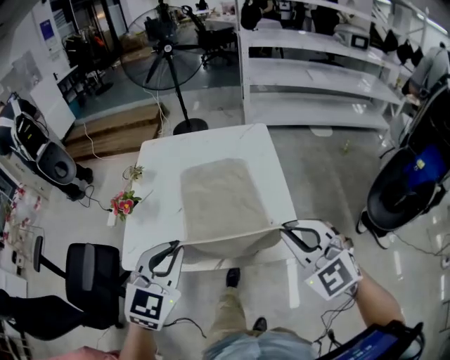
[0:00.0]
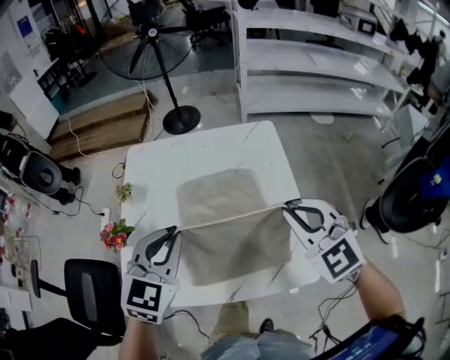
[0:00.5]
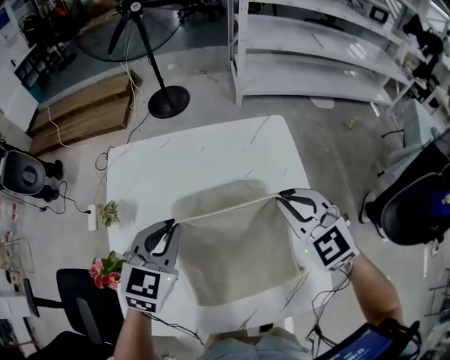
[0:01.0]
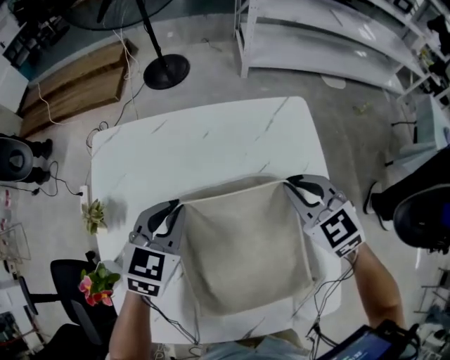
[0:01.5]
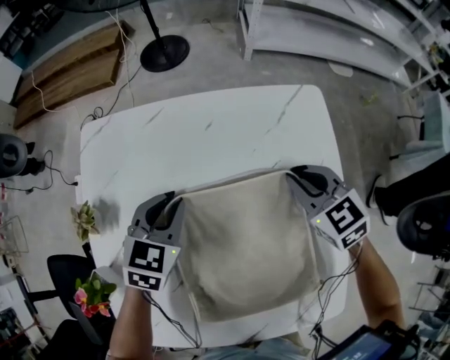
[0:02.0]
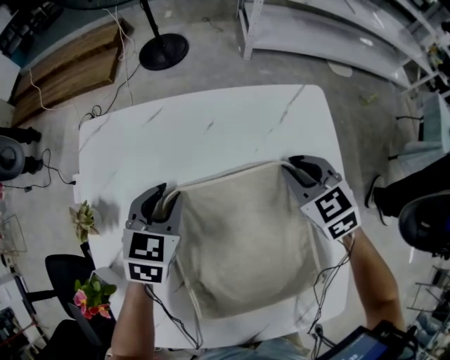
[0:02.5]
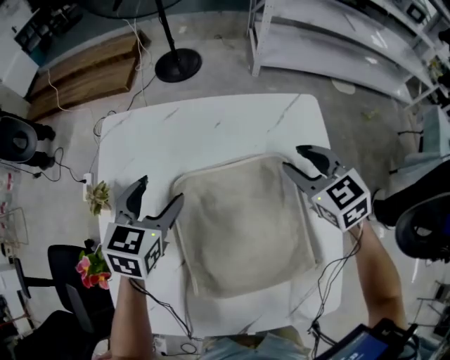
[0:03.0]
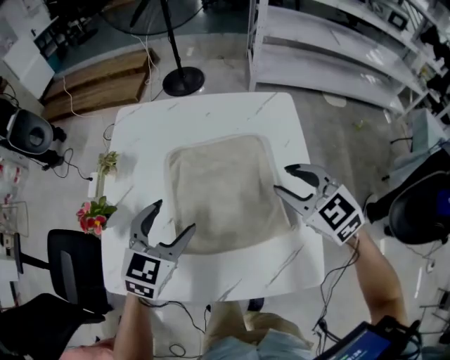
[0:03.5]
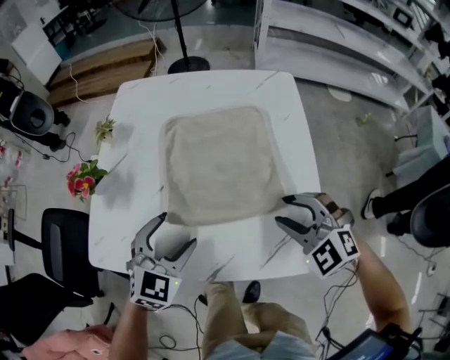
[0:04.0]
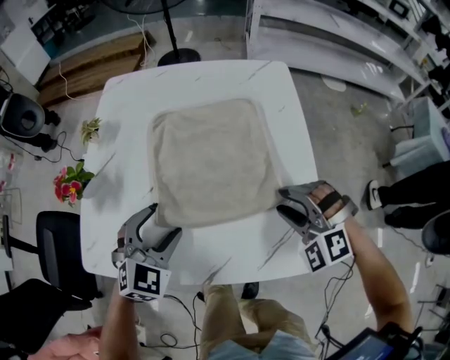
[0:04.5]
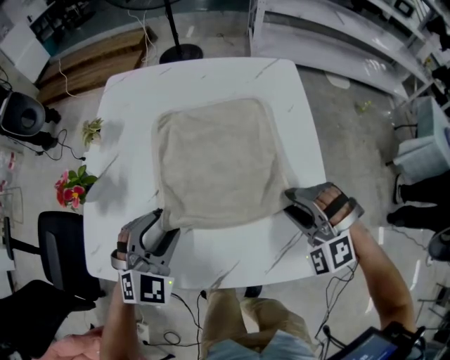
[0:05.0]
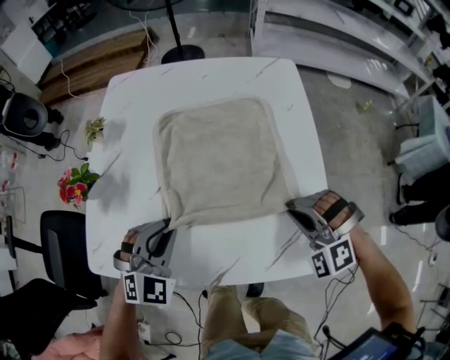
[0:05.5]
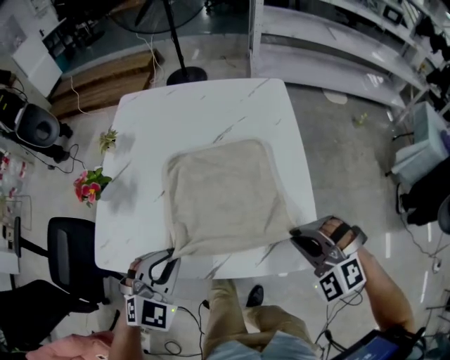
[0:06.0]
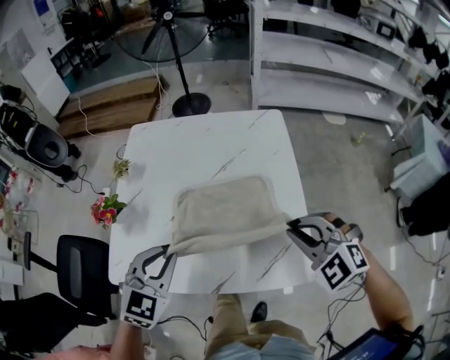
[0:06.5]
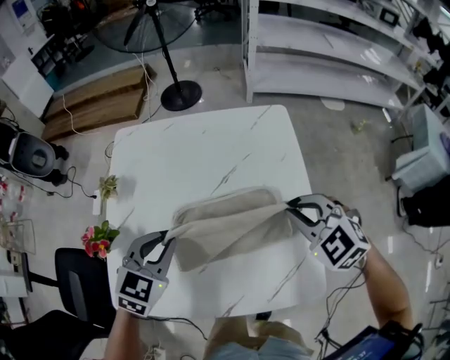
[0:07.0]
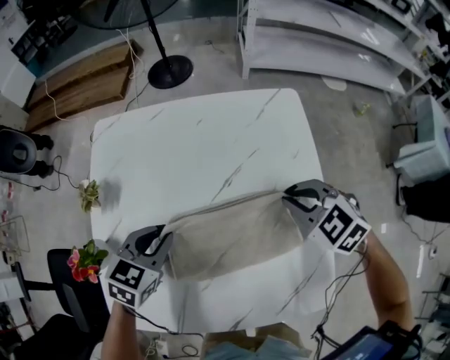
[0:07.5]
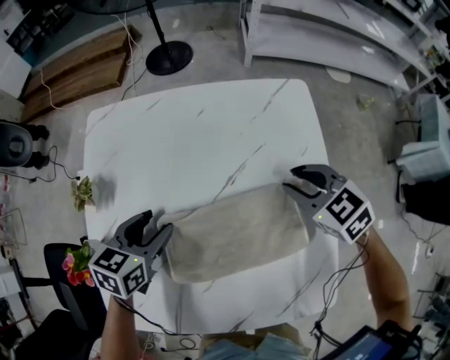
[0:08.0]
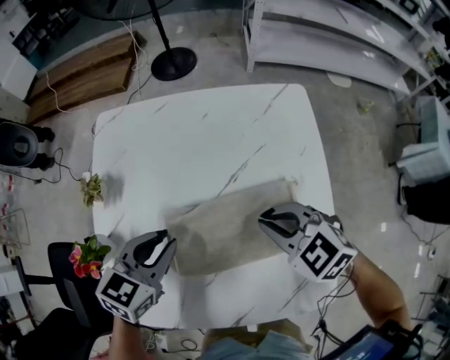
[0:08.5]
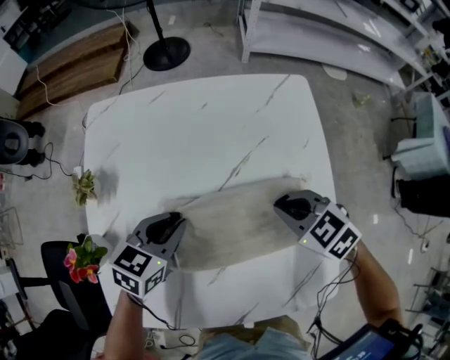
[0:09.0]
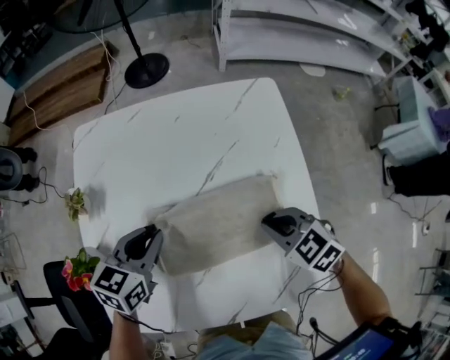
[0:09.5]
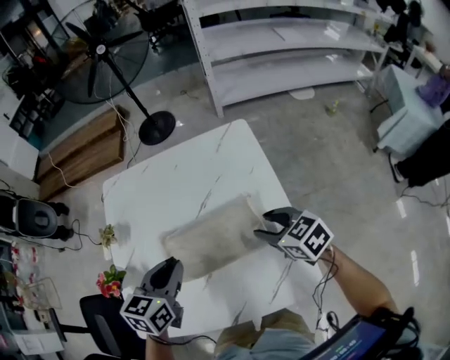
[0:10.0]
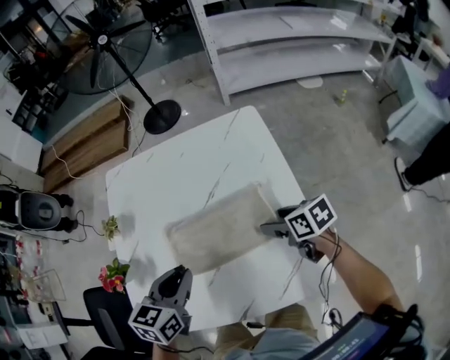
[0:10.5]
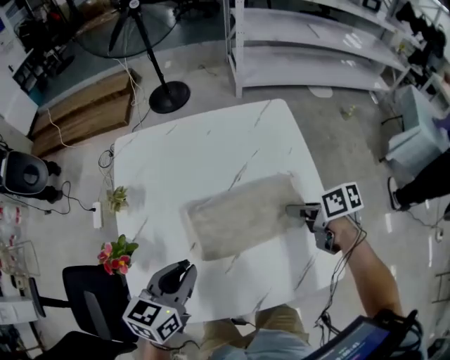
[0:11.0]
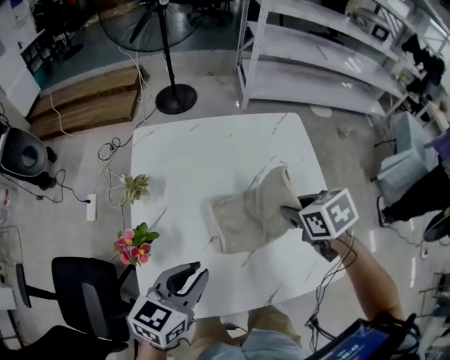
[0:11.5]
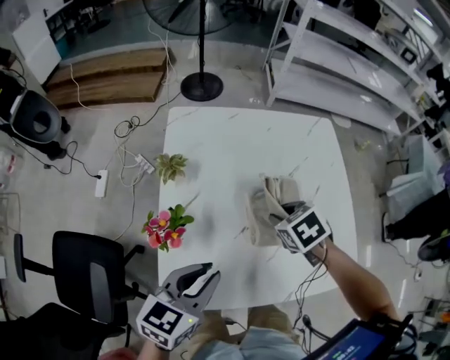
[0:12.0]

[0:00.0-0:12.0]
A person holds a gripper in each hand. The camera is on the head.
0:00.0 to 0:02.0: Both grippers are carried forward, roughly 40 cm. The two grippers go about 25 cm downward. The right gripper swivels roughly 40 degrees. Meanwhile the left gripper rotates some 20 degrees.
0:02.0 to 0:04.0: The grippers both shift backward by some 30 cm. The left gripper opens. The right gripper rotates around the line of its fingers by roughly 40 degrees, counterclockwise from behind, and opens its fingers.
0:04.0 to 0:06.0: Both grippers move backward, roughly 5 cm. The left gripper closes its fingers; the right gripper closes up.
0:06.0 to 0:08.0: The grippers both shift forward by approximately 30 cm. The right gripper rolls clockwise, seen from behind, by some 50 degrees. Meanwhile the left gripper rolls counterclockwise, seen from behind, by approximately 50 degrees, and opens its fingers.
0:08.0 to 0:10.0: The right gripper shifts roughly 15 cm backward, and changes its angle by roughly 20 degrees. The left gripper goes up and down, approximately 15 cm each way, reversing 2 times, and closes up.
0:10.0 to 0:12.0: The left gripper goes approximately 20 cm to the left and backward; the right gripper heads to the left, covering roughly 20 cm, changes its angle by some 30 degrees, and opens, then closes once more.

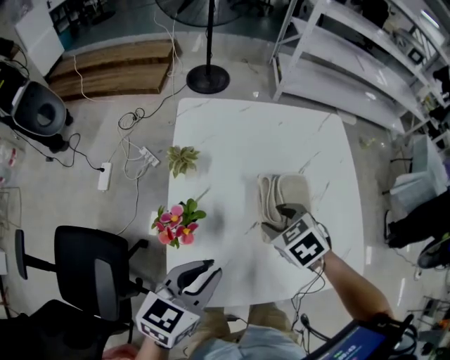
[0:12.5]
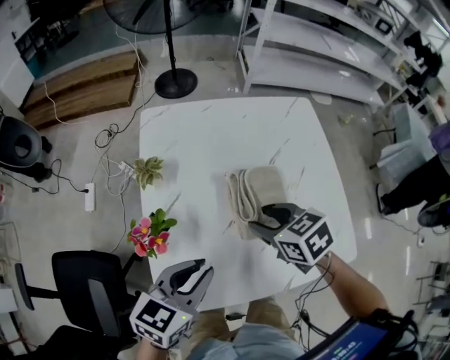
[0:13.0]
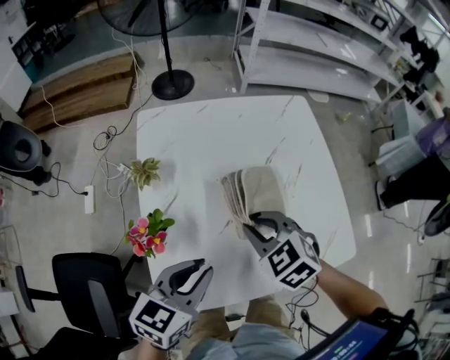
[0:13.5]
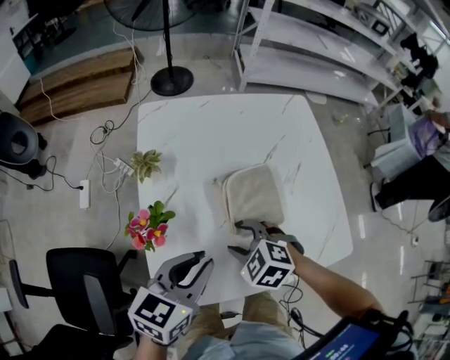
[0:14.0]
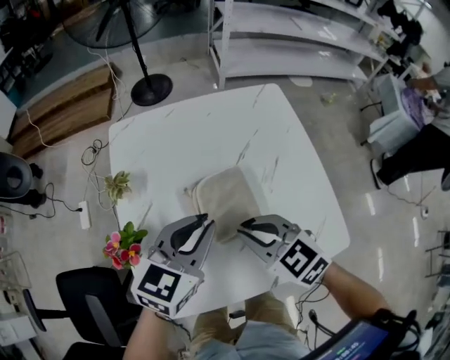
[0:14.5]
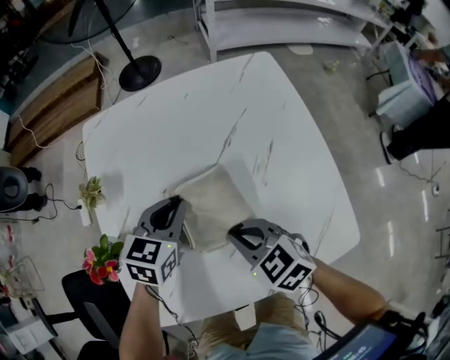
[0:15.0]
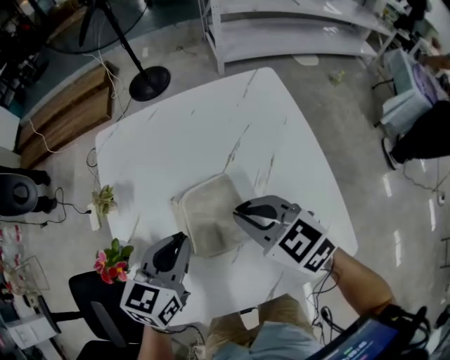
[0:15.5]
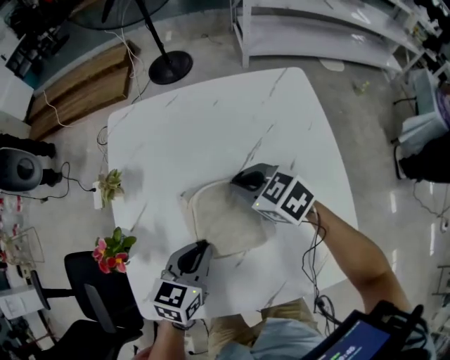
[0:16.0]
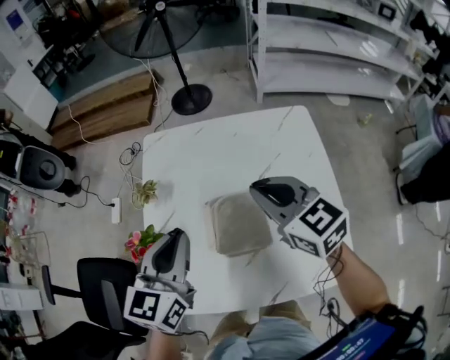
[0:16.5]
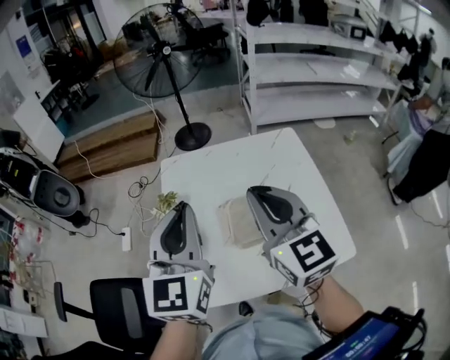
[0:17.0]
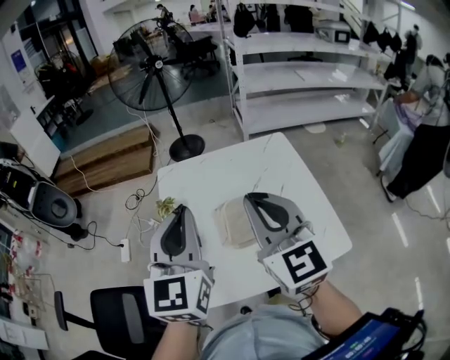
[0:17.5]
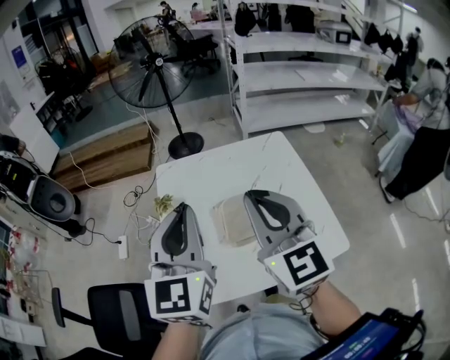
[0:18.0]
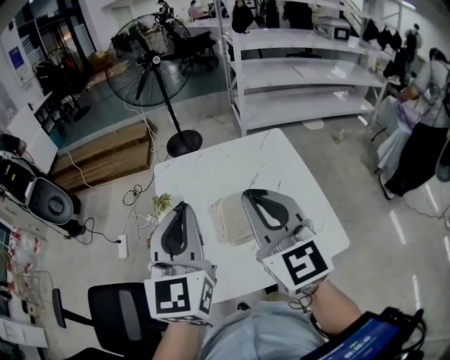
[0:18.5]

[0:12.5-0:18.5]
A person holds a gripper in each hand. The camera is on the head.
0:12.5 to 0:14.5: The right gripper goes up and down, about 10 cm each way, reversing 2 times, rotates roughly 30 degrees, and closes, while the left gripper shifts some 15 cm to the right and forward.
0:14.5 to 0:16.5: The right gripper swings up and down, roughly 20 cm each way, with 3 reversals; the left gripper swings up and down, some 20 cm each way, with 3 reversals, and turns by about 30 degrees.
0:16.5 to 0:18.5: Both grippers travel together upward and backward, roughly 20 cm. The left gripper turns by approximately 20 degrees, while the right gripper turns by roughly 40 degrees.

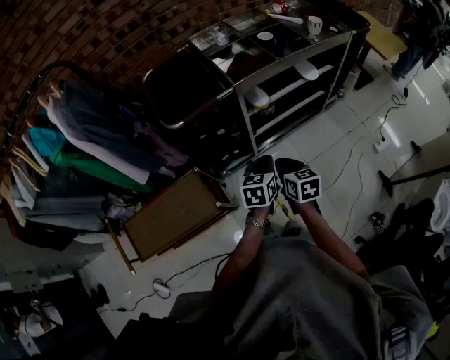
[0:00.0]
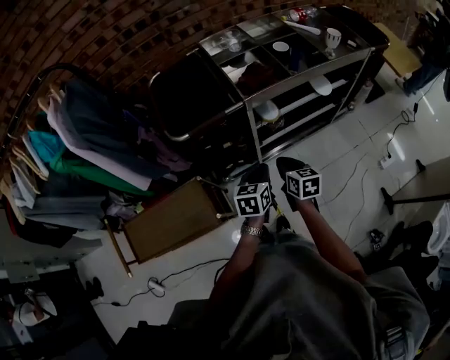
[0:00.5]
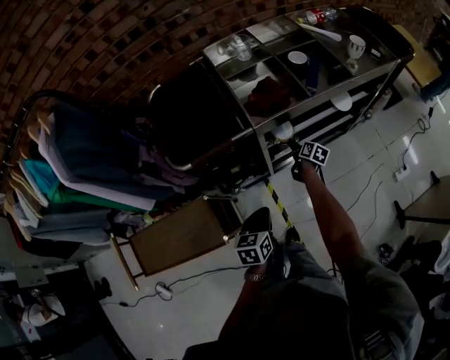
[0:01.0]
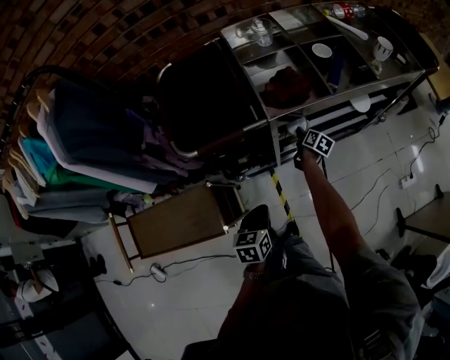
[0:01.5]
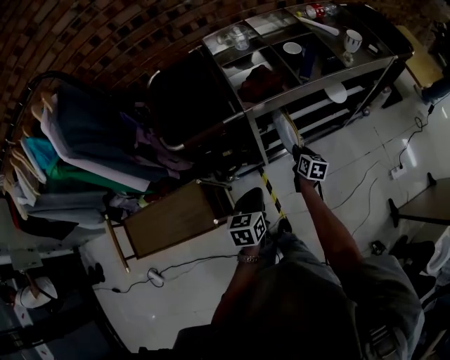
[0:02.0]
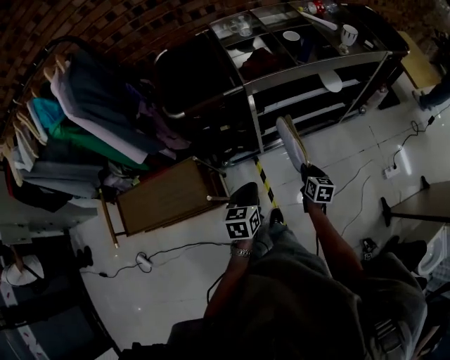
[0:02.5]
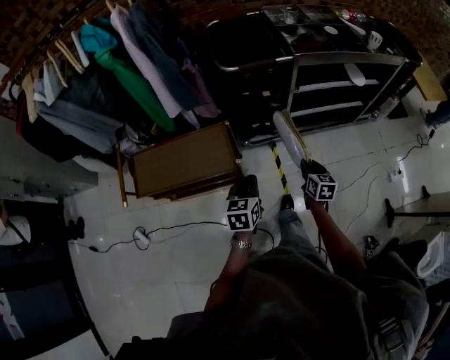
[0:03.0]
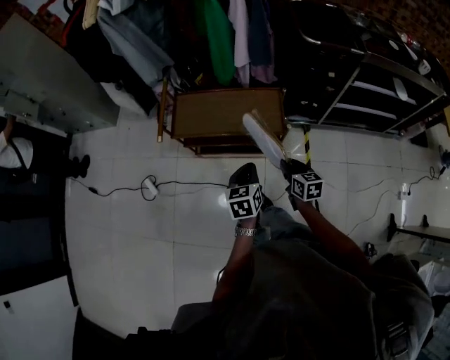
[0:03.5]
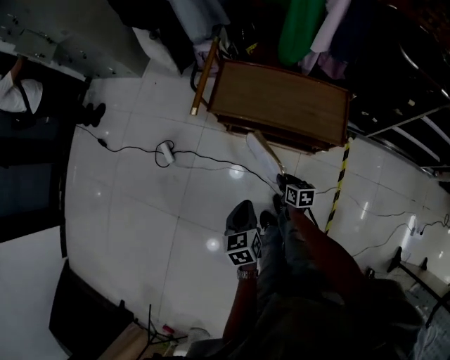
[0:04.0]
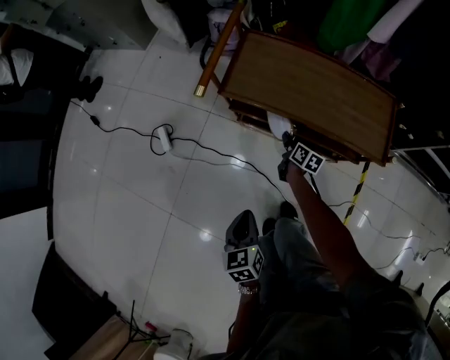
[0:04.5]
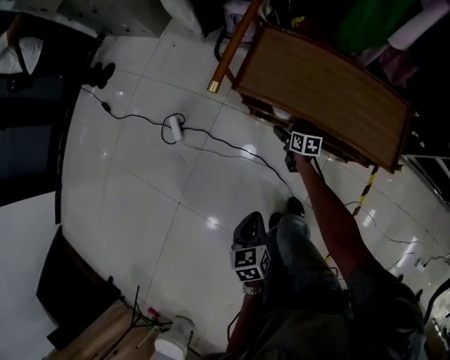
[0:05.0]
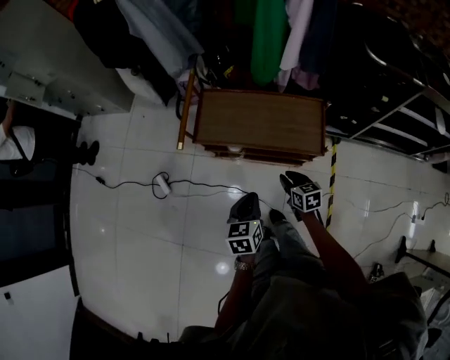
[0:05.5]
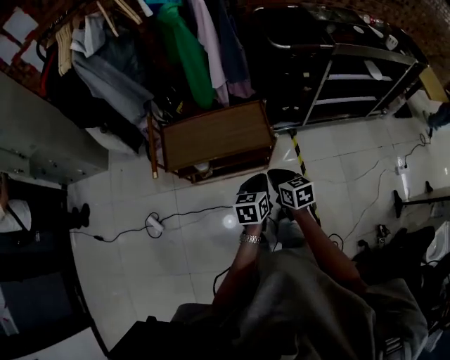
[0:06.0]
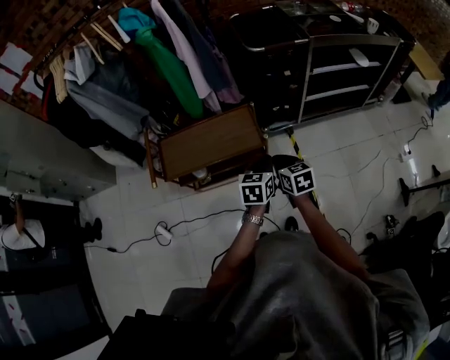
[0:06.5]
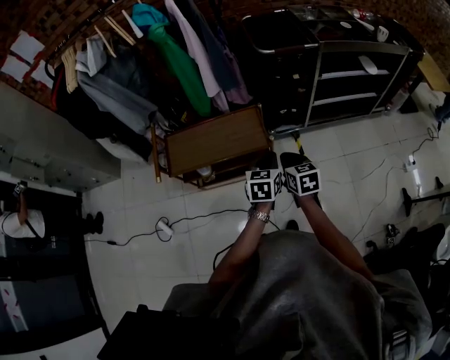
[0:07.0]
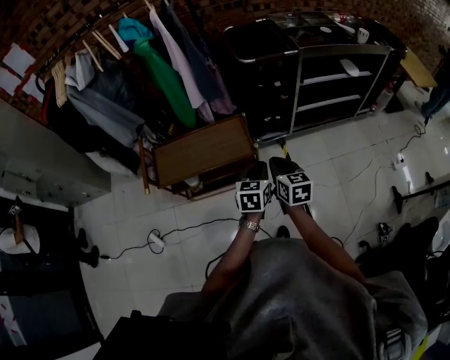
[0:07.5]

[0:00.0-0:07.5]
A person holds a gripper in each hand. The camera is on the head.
0:00.0 to 0:02.0: The right gripper moves forward, downward and to the right, roughly 30 cm, and opens, then closes once more.
0:02.0 to 0:04.0: The pair of grippers is taken approximately 80 cm. The left gripper turns by about 50 degrees. Meanwhile the right gripper rotates about 50 degrees.
0:04.0 to 0:05.5: Both grippers travel together to the right and forward, roughly 10 cm. The left gripper moves about 15 cm downward and comes back. Meanwhile the right gripper goes downward and returns, roughly 20 cm each way, and opens and closes again.
0:05.5 to 0:07.5: The left gripper shifts by roughly 35 cm, and changes its angle by roughly 30 degrees. The right gripper moves upward, roughly 25 cm, and changes its angle by roughly 30 degrees.
